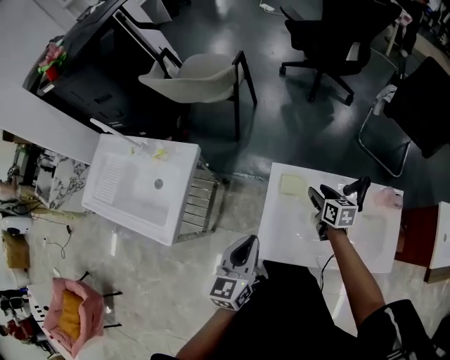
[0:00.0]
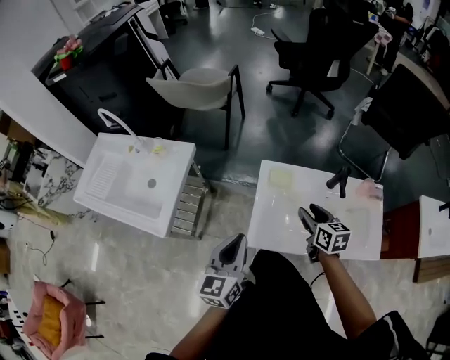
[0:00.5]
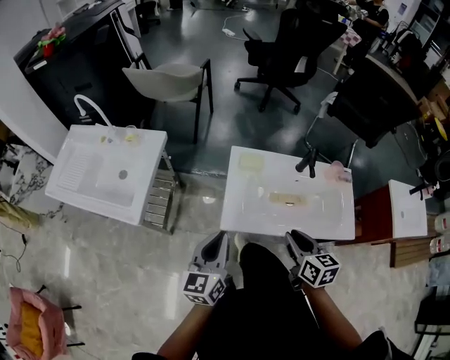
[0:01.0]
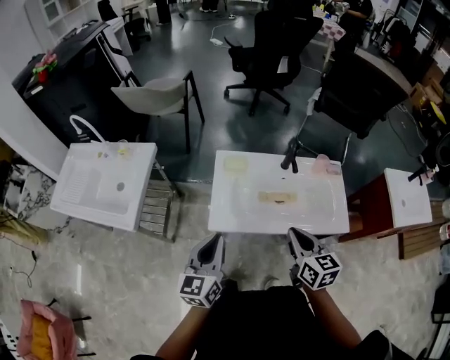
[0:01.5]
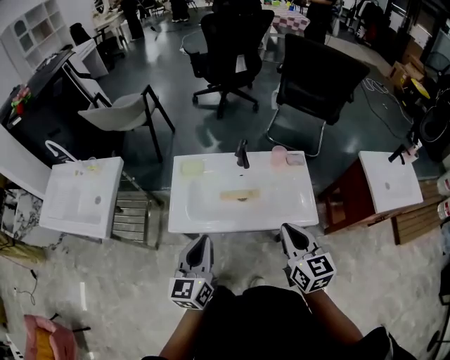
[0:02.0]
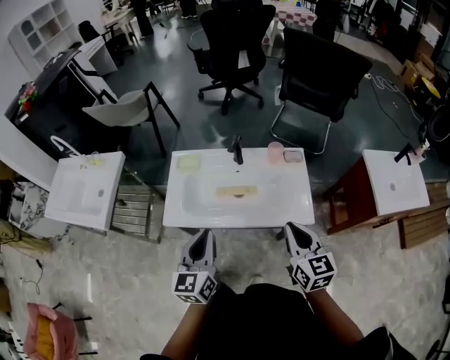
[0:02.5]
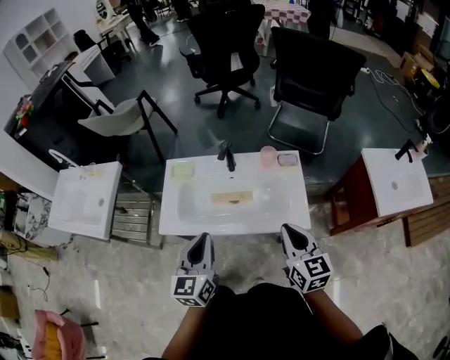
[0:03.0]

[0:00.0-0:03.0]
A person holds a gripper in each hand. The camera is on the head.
0:00.0 to 0:01.5: The right gripper heads backward and upward, covering approximately 40 cm, and closes. The left gripper travels backward by some 20 cm.
0:01.5 to 0:03.0: Both grippers travel together to the right, some 25 cm.

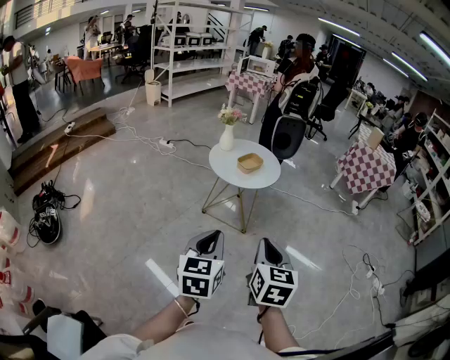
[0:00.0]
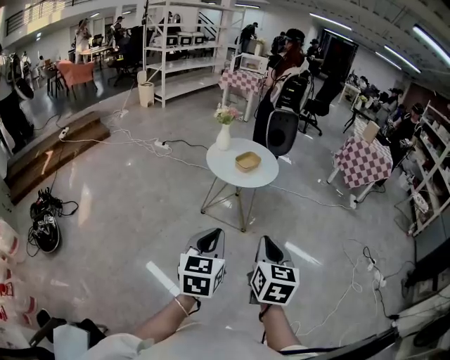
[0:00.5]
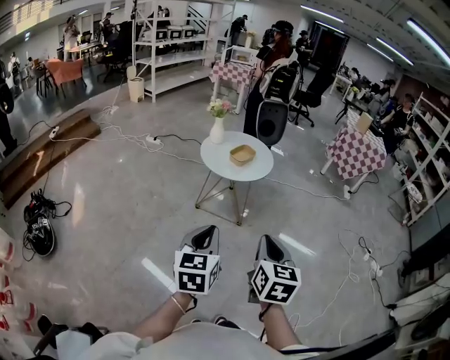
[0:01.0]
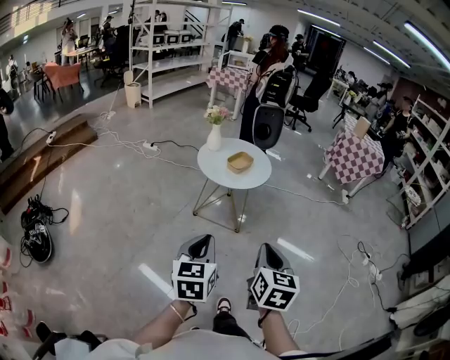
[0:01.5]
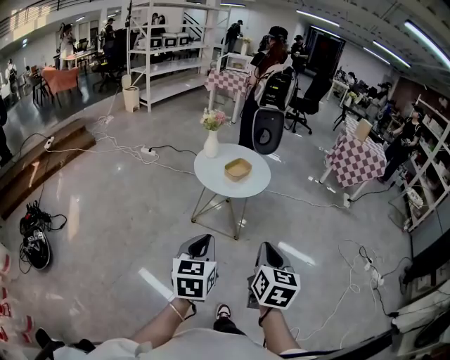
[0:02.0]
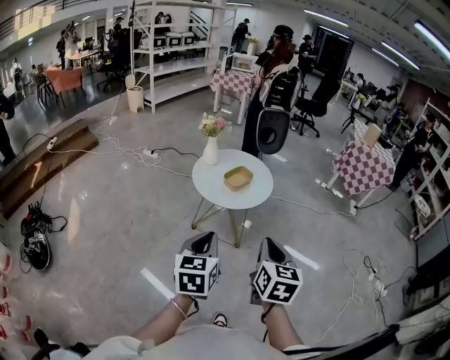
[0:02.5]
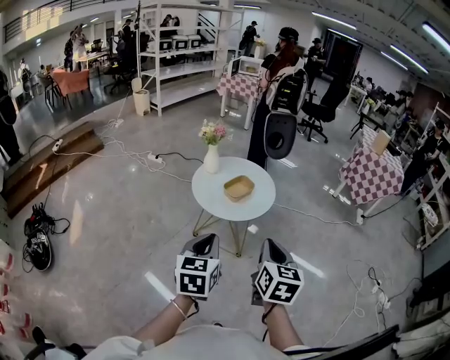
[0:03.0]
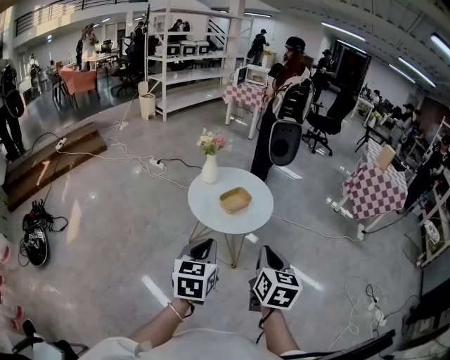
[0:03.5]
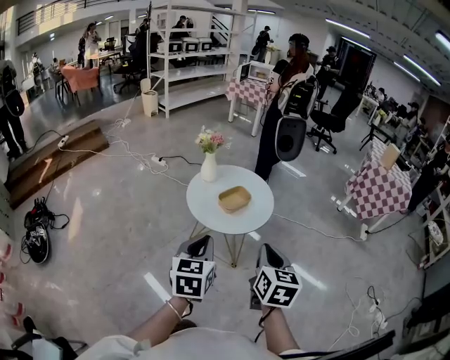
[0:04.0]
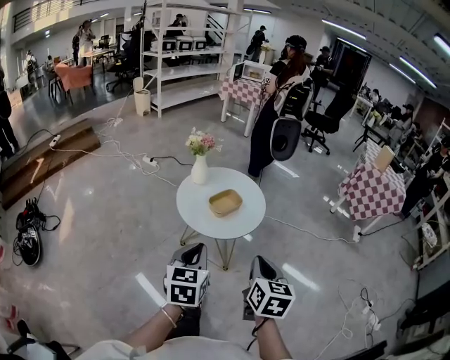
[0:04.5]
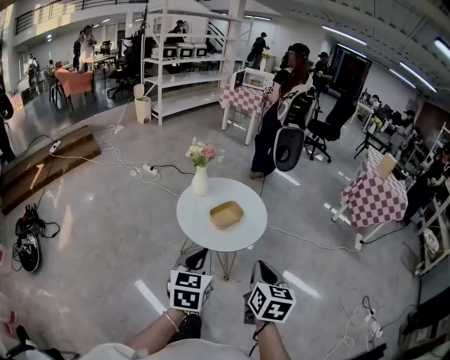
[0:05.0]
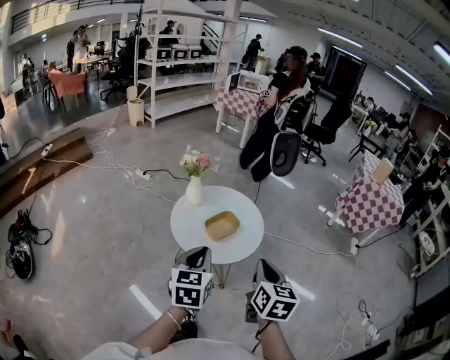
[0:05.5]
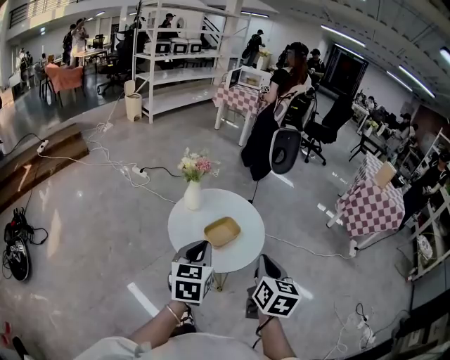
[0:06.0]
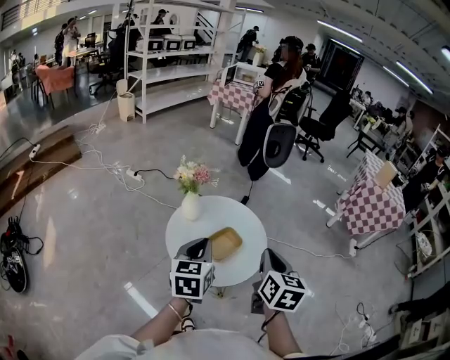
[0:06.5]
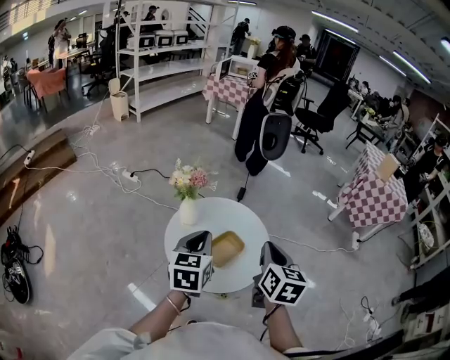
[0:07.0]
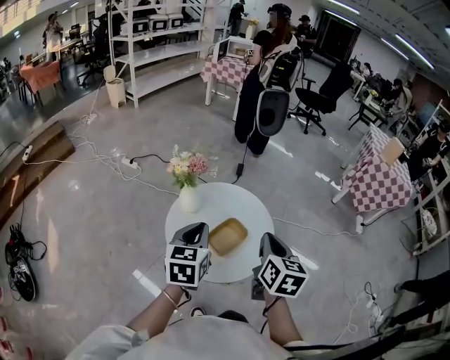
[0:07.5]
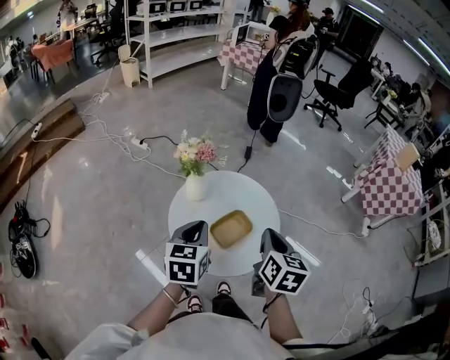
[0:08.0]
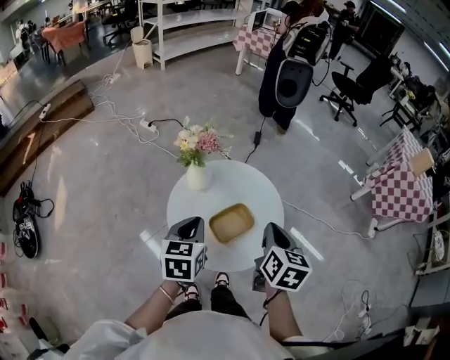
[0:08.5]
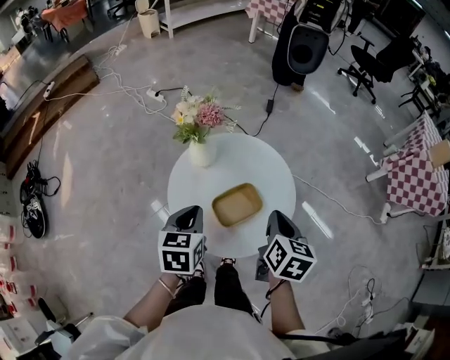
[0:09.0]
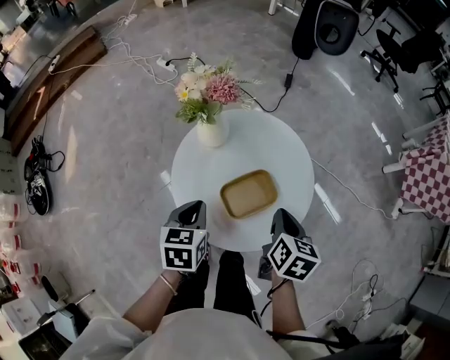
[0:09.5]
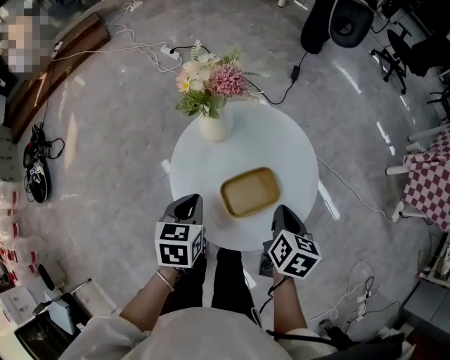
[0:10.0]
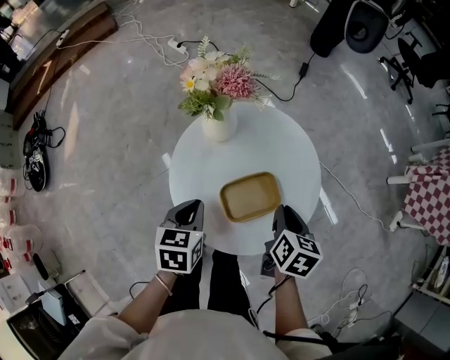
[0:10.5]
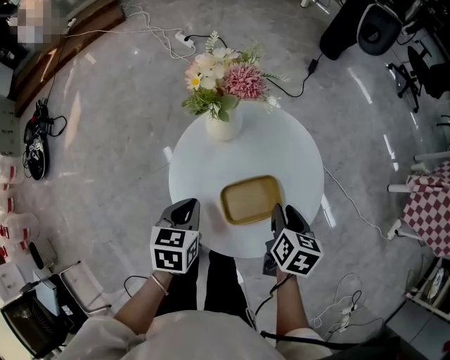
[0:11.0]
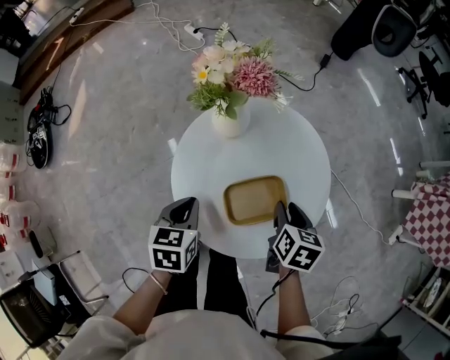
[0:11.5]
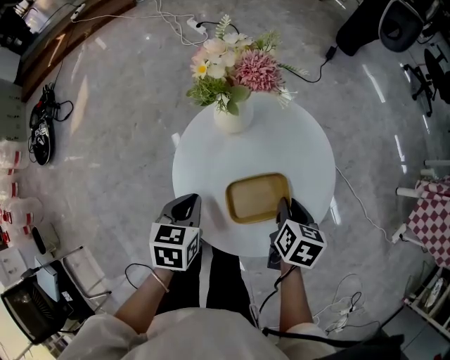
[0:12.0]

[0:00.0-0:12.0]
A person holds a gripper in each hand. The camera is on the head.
0:00.0 to 0:02.0: The two grippers go some 10 cm forward.
0:02.0 to 0:04.0: The grippers both shift forward by roughly 20 cm.
0:04.0 to 0:06.0: The grippers both shift forward by roughly 15 cm.
0:06.0 to 0:08.0: The right gripper moves forward, some 15 cm; the left gripper shifts about 15 cm forward, downward and to the left.
0:08.0 to 0:10.0: Both grippers travel together downward, about 15 cm. The right gripper changes its angle by roughly 20 degrees. The left gripper rotates approximately 20 degrees.
0:10.0 to 0:12.0: The right gripper travels downward by about 5 cm, and opens up.

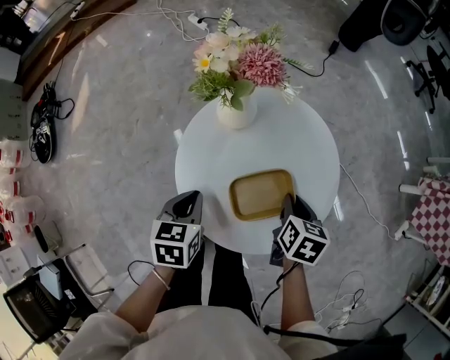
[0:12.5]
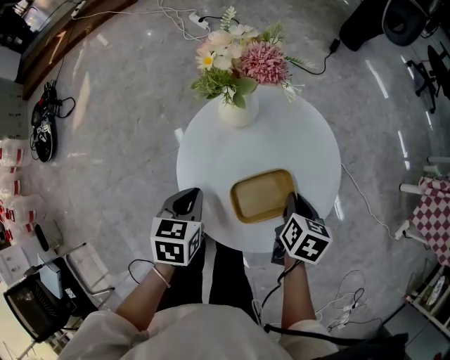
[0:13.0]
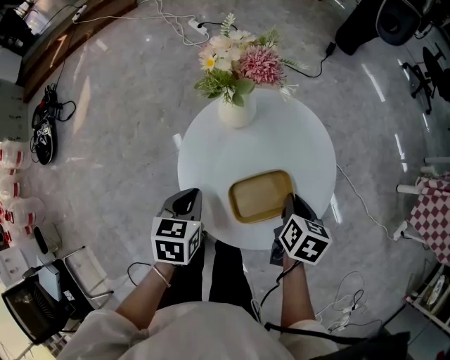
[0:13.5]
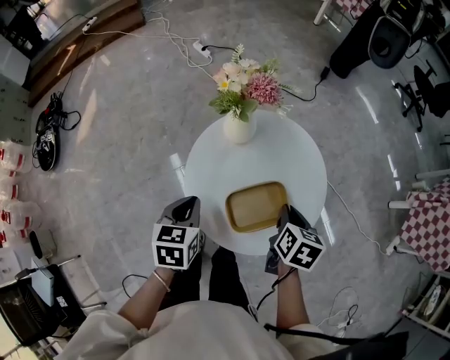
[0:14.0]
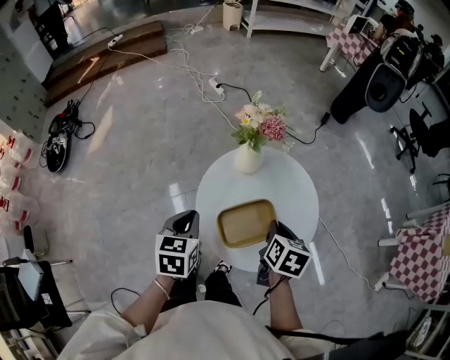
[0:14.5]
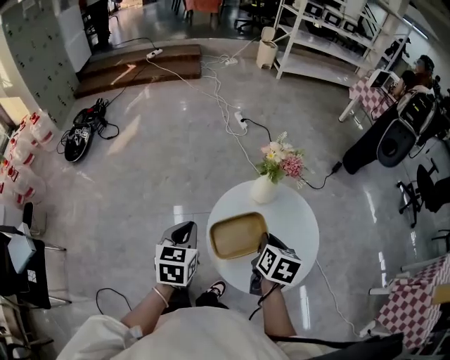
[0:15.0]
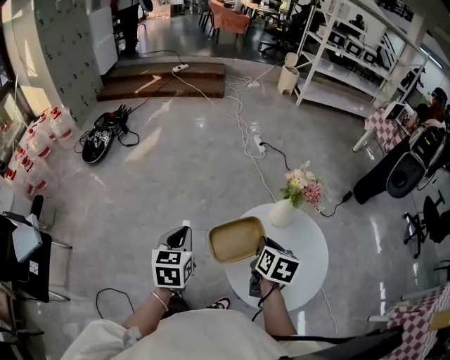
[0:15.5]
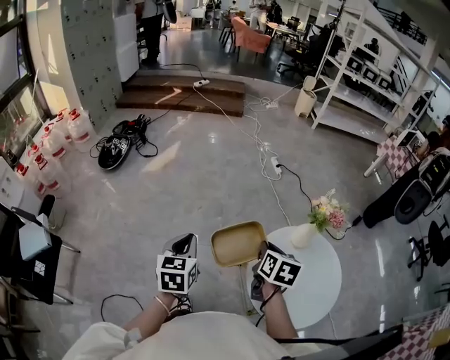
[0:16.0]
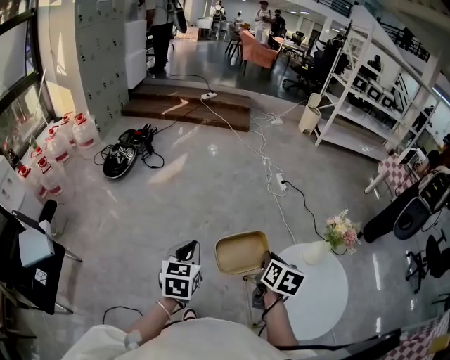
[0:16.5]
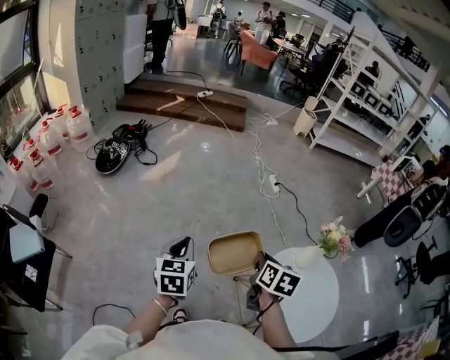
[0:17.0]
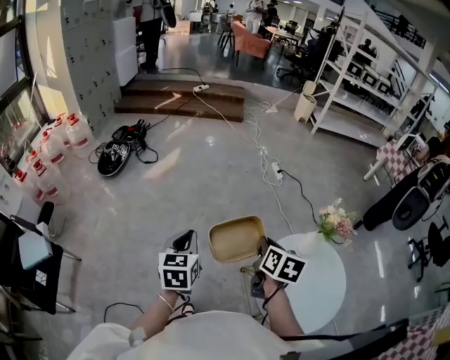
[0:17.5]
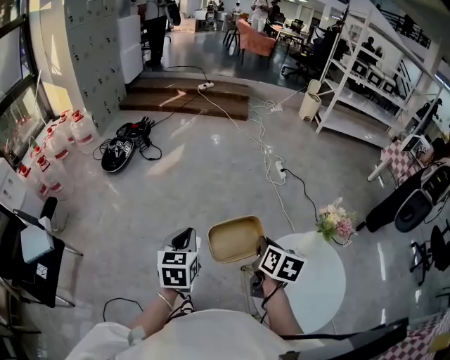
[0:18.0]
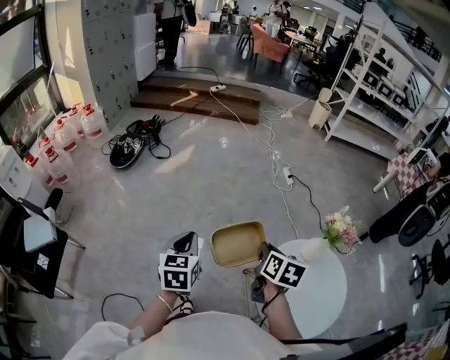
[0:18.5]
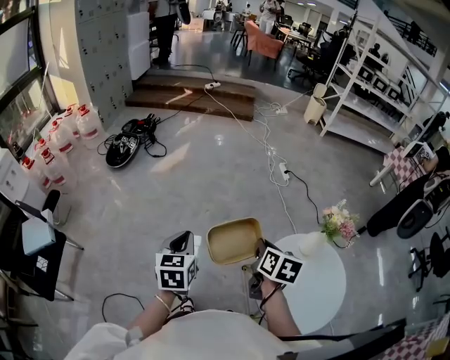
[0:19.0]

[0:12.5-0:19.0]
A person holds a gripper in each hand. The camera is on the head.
0:12.5 to 0:14.5: Both grippers move upward, approximately 10 cm.
0:14.5 to 0:17.0: The left gripper moves approximately 30 cm, and rotates roughly 30 degrees. The right gripper ends up about 35 cm from where it was, and swivels some 20 degrees.
0:17.0 to 0:19.0: The grippers move only a little.

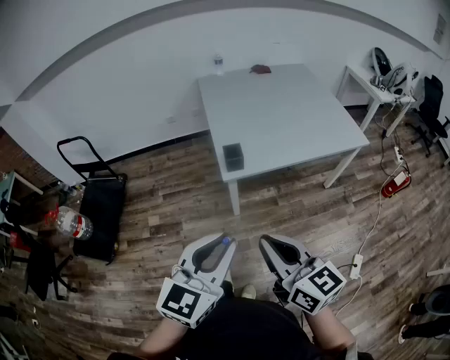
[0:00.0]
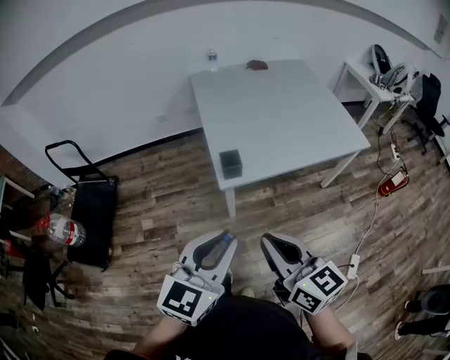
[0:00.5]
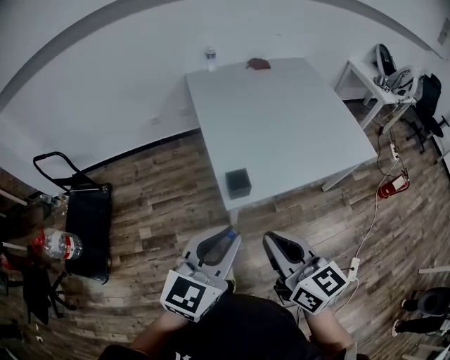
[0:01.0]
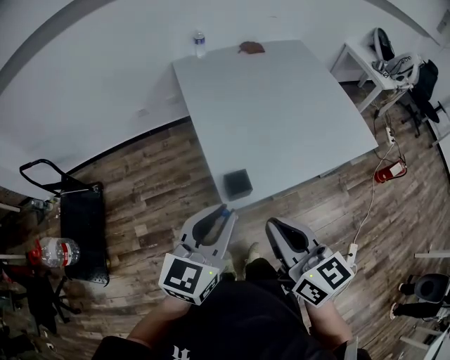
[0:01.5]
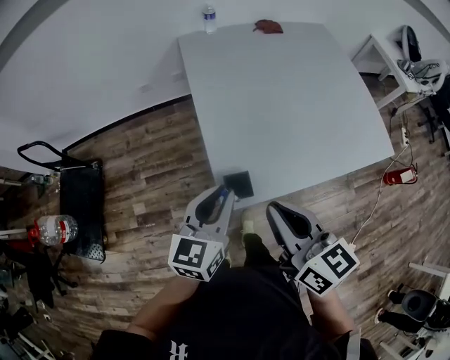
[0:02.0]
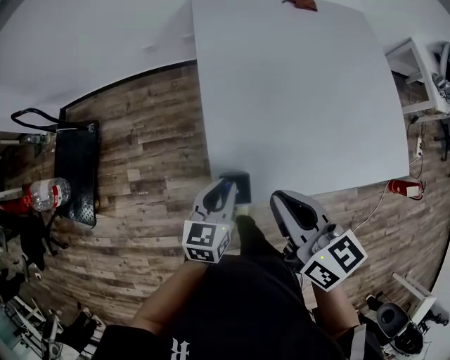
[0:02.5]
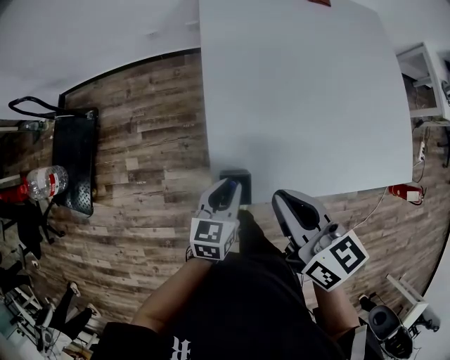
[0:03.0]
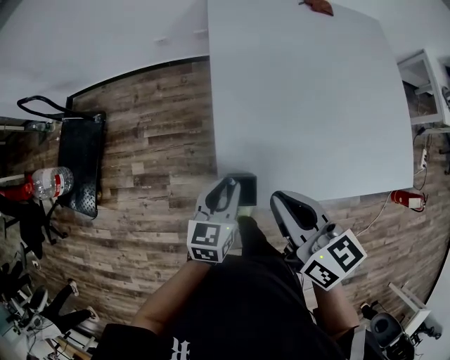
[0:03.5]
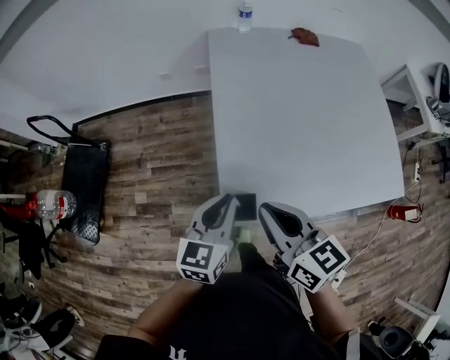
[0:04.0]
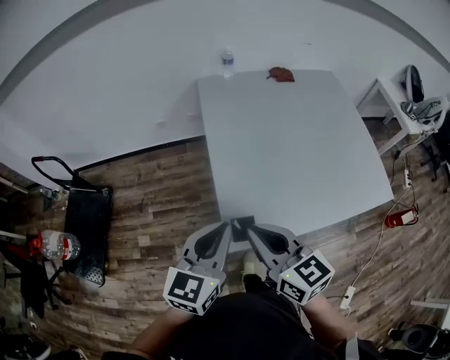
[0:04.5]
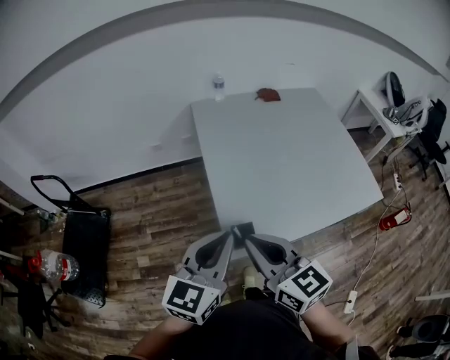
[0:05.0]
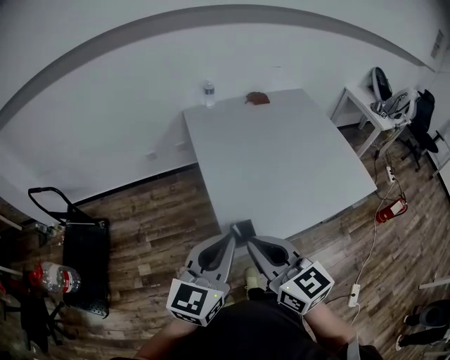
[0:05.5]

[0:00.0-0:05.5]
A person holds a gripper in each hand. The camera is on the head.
0:00.0 to 0:02.0: Both grippers move forward, about 35 cm.
0:02.0 to 0:03.5: The left gripper shifts about 15 cm downward, and changes its angle by about 20 degrees. The right gripper shifts some 10 cm forward and downward.
0:03.5 to 0:05.5: The left gripper moves upward, approximately 25 cm, and turns by roughly 30 degrees. The right gripper moves backward, upward and to the left, about 15 cm, and rotates roughly 30 degrees.
